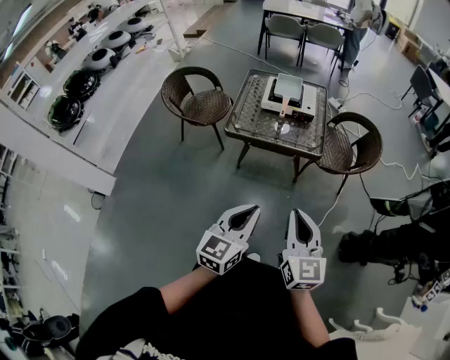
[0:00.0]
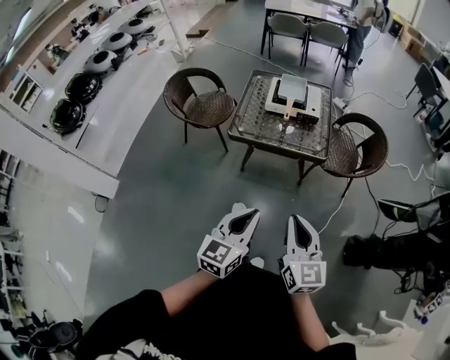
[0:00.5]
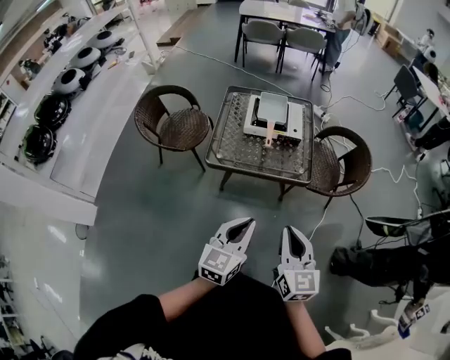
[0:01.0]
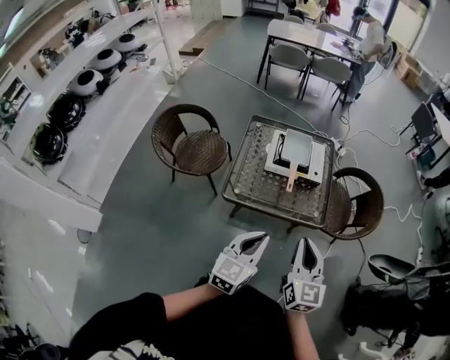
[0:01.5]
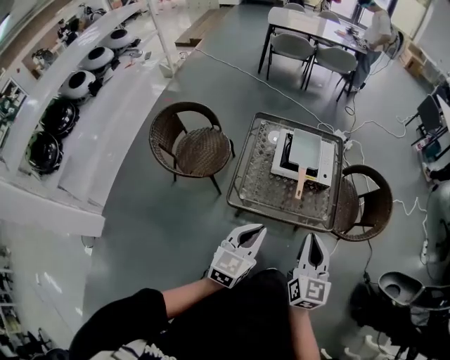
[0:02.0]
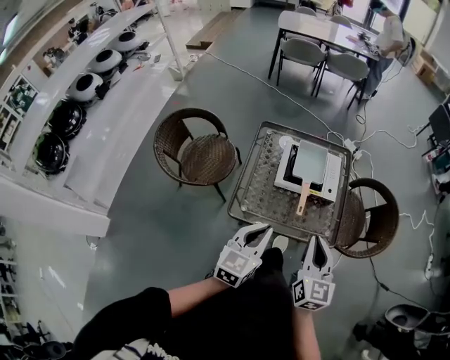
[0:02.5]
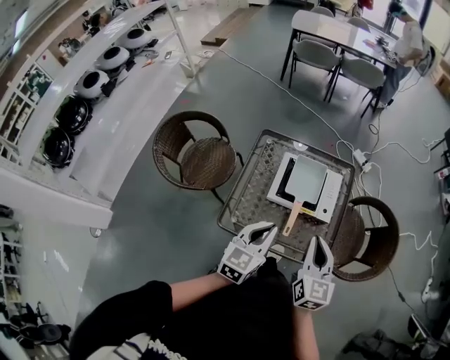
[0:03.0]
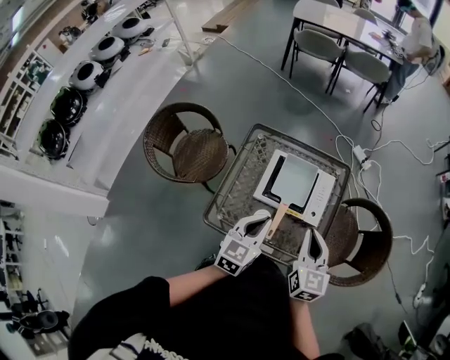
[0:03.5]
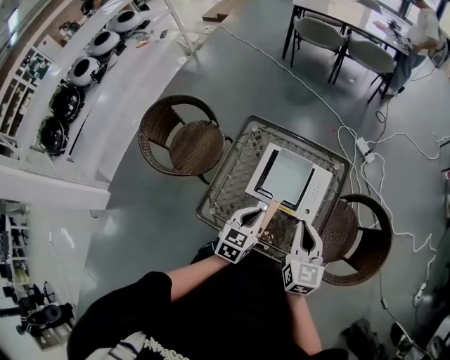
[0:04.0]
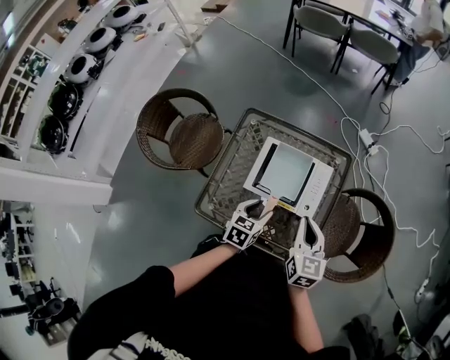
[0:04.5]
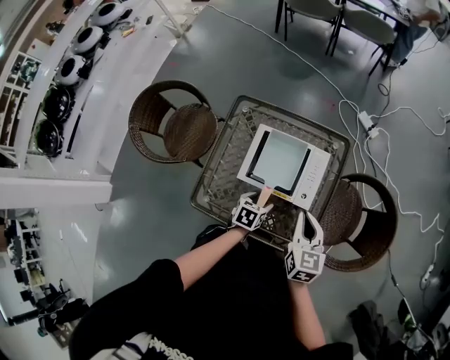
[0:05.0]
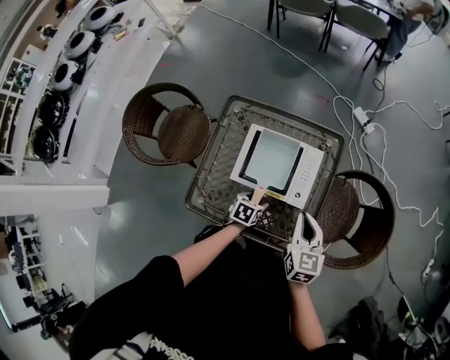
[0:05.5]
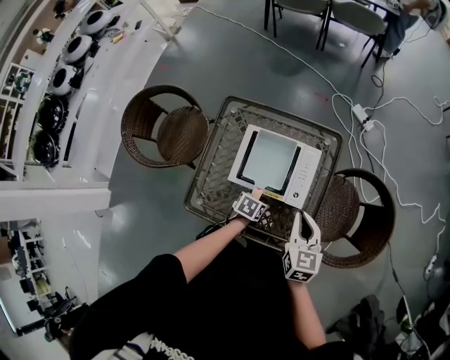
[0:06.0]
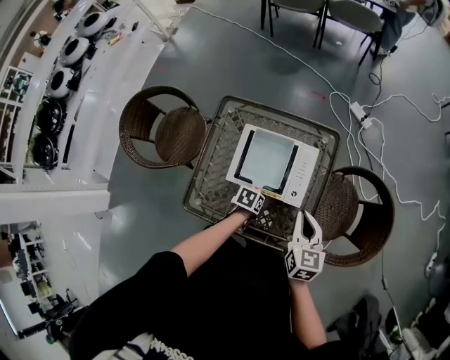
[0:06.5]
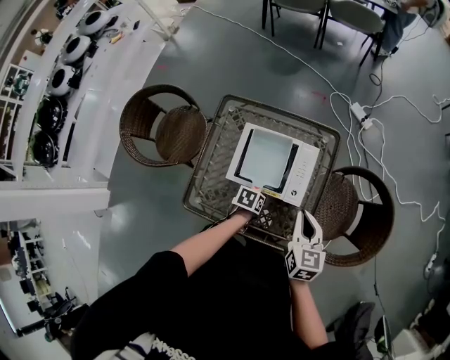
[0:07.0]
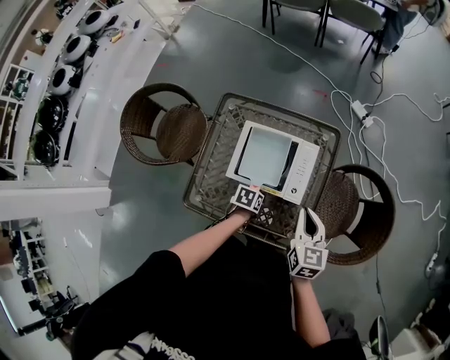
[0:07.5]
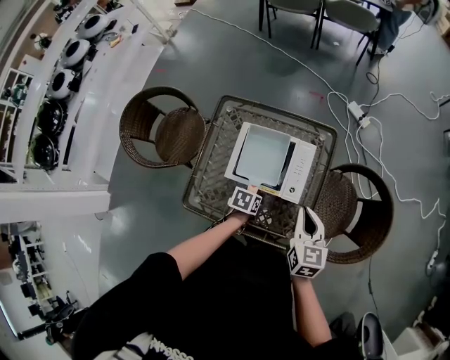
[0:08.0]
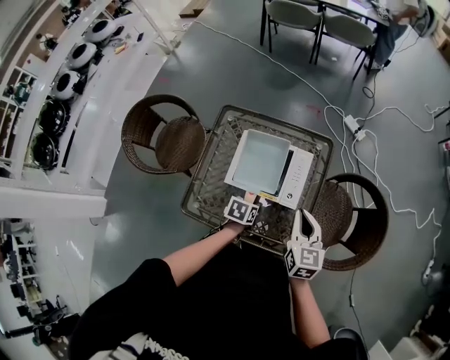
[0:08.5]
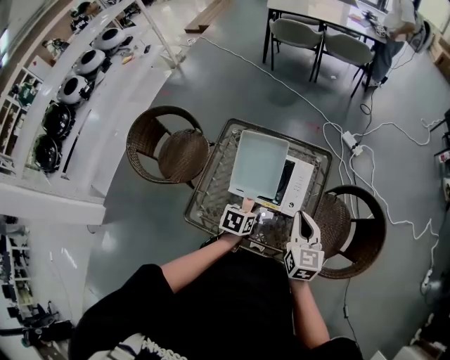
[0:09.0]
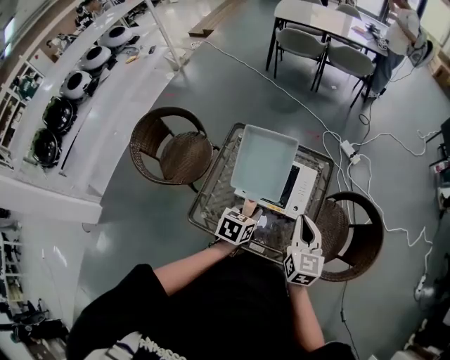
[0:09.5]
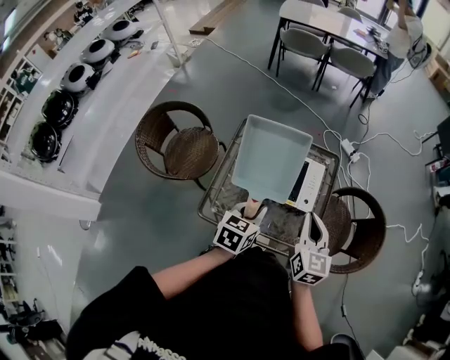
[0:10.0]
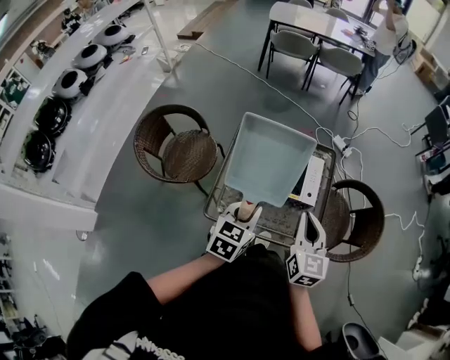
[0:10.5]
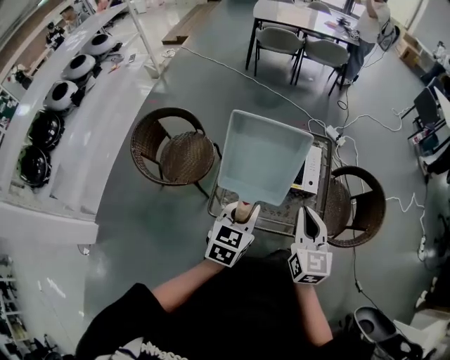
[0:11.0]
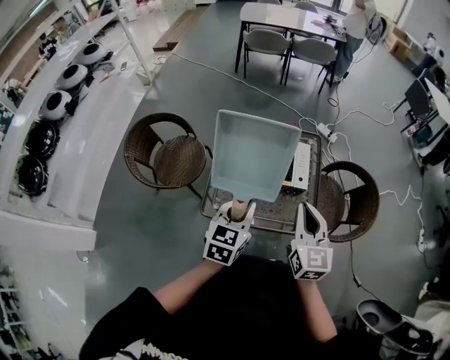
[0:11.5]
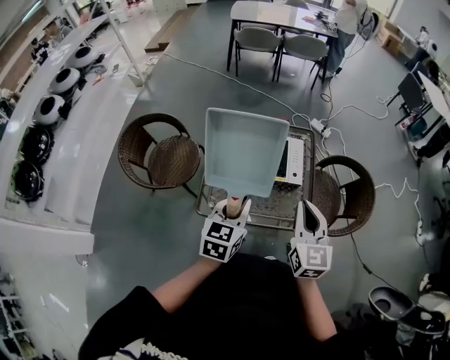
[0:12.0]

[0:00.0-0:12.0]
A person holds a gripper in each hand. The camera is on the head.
0:00.0 to 0:02.0: The left gripper heads forward and to the left, covering roughly 40 cm. The right gripper heads forward, covering roughly 35 cm.
0:02.0 to 0:04.0: The right gripper goes approximately 35 cm forward. Meanwhile the left gripper shifts approximately 35 cm forward and downward, and changes its angle by some 20 degrees.
0:04.0 to 0:06.0: The left gripper moves downward, about 20 cm, tilts its fingers some 30 degrees downward, and opens its fingers. Meanwhile the right gripper shifts approximately 10 cm downward and to the right.
0:06.0 to 0:08.0: The left gripper closes its fingers.
0:08.0 to 0:10.0: The right gripper heads upward, backward and to the left, covering about 15 cm. Meanwhile the left gripper shifts approximately 25 cm upward, and turns by about 40 degrees.
0:10.0 to 0:12.0: Both grippers travel together backward and upward, about 15 cm.

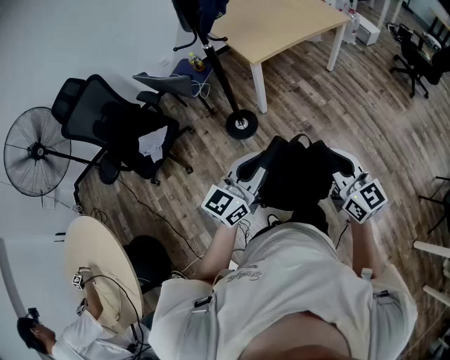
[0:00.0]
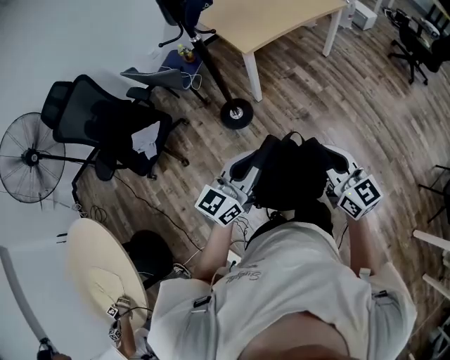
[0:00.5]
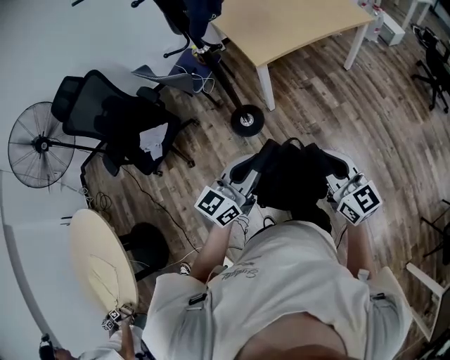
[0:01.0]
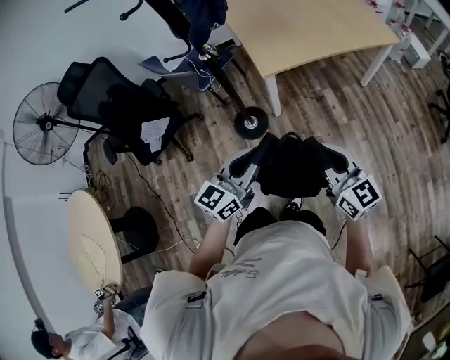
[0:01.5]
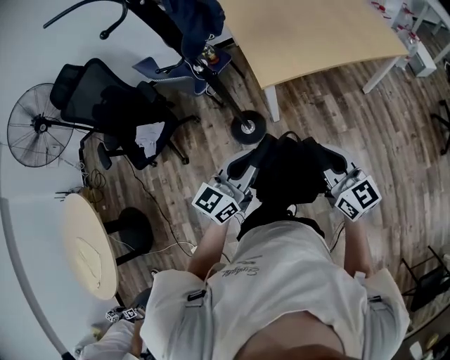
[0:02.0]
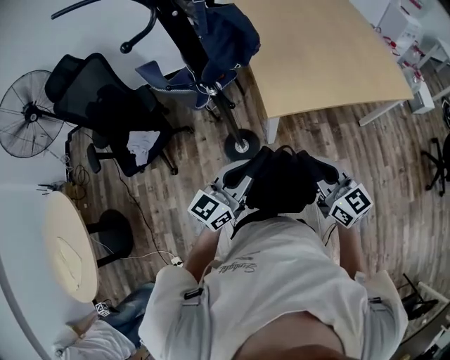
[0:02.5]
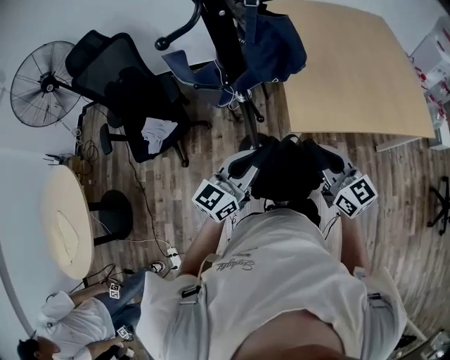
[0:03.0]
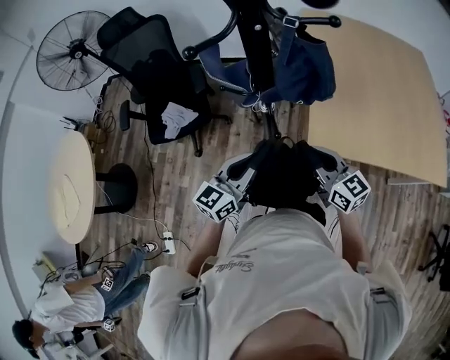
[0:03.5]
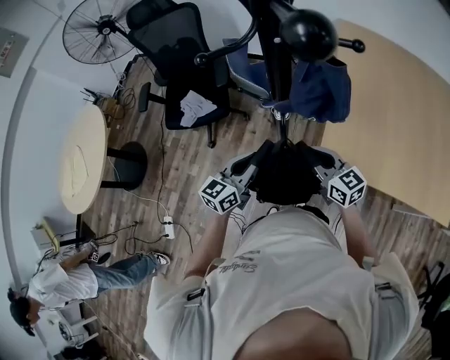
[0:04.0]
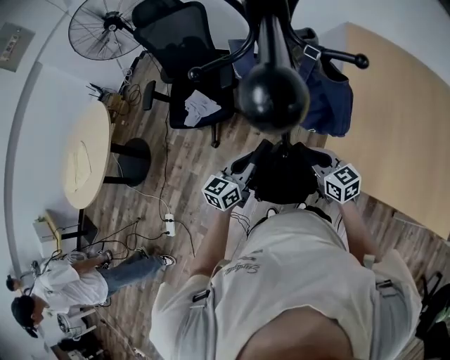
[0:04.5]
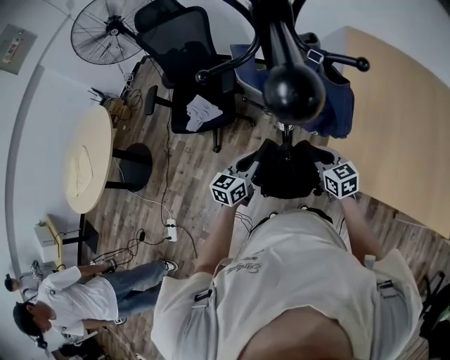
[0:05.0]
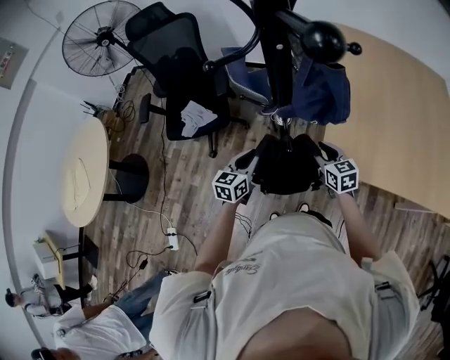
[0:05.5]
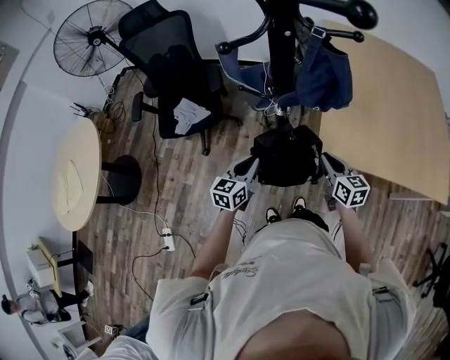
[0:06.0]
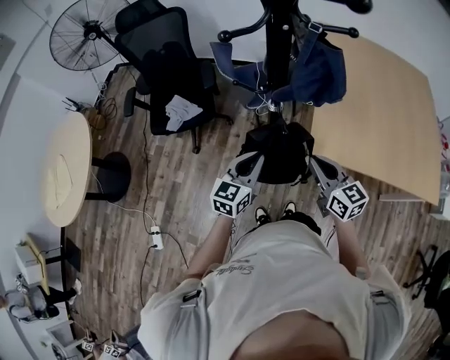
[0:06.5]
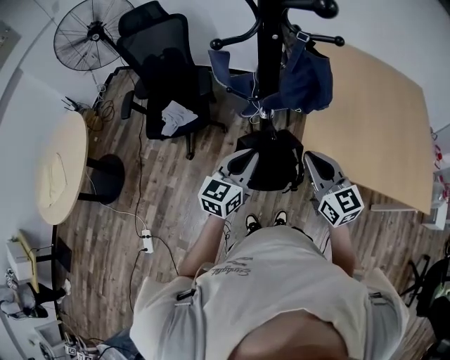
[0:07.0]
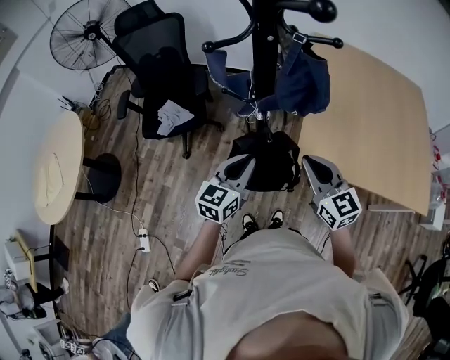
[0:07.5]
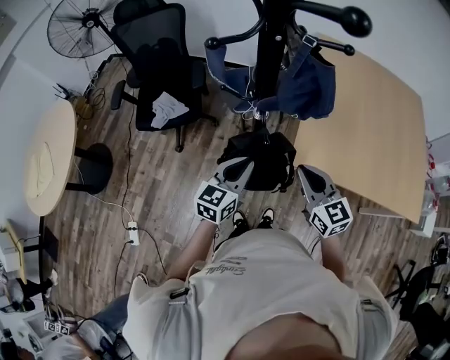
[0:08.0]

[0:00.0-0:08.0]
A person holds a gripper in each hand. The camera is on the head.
0:00.0 to 0:02.0: Both grippers travel together forward, roughly 35 cm. The right gripper changes its angle by approximately 20 degrees.
0:02.0 to 0:04.0: The right gripper shifts by approximately 35 cm, and rotates about 40 degrees, while the left gripper changes place by approximately 25 cm, and turns by roughly 40 degrees.
0:04.0 to 0:06.0: The two grippers go approximately 5 cm downward. The right gripper turns by approximately 30 degrees, and opens and closes again.
0:06.0 to 0:08.0: The right gripper shifts some 10 cm upward, and turns by some 20 degrees. The left gripper goes roughly 10 cm upward and to the right.

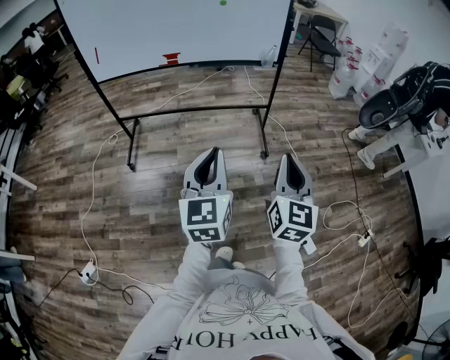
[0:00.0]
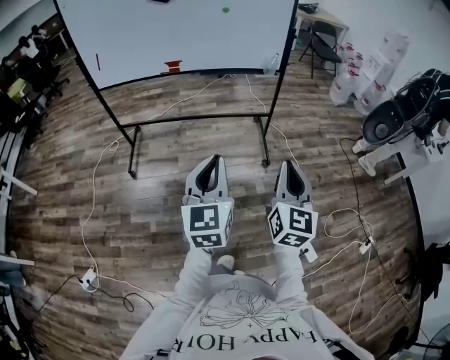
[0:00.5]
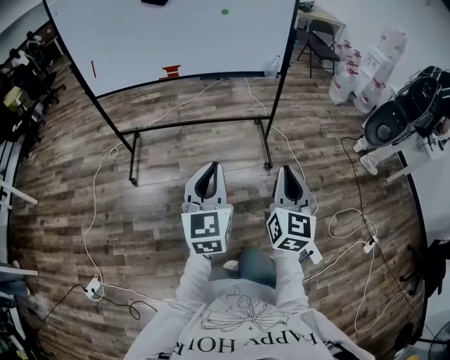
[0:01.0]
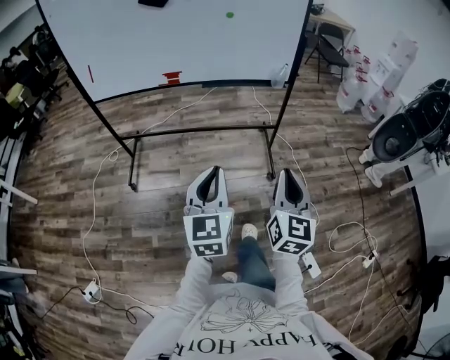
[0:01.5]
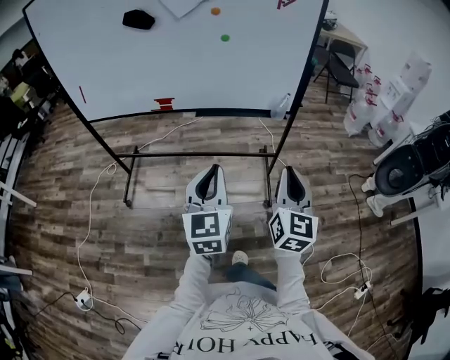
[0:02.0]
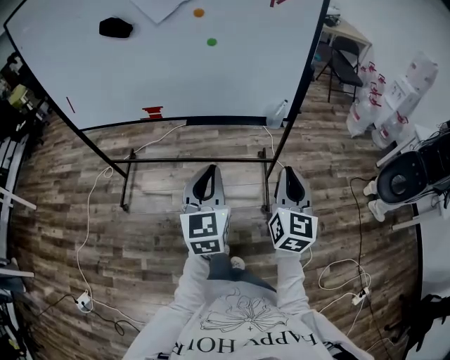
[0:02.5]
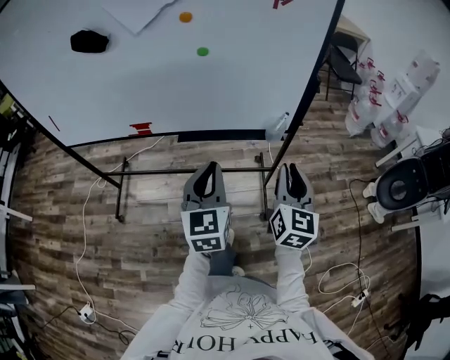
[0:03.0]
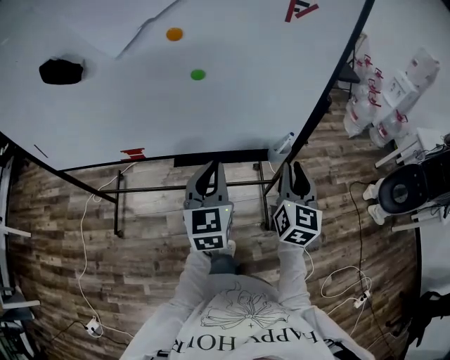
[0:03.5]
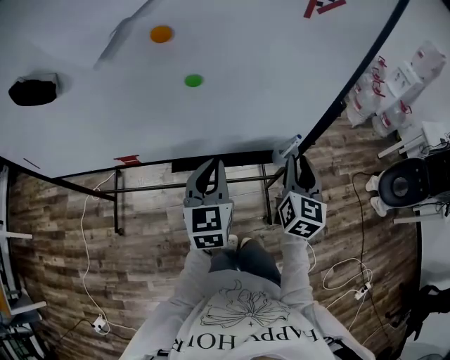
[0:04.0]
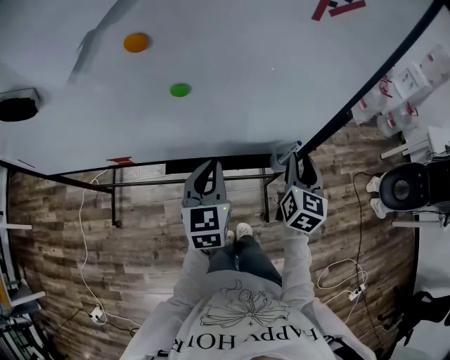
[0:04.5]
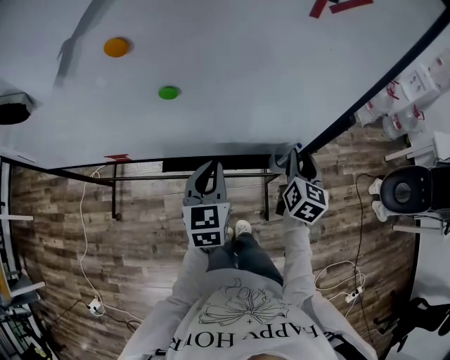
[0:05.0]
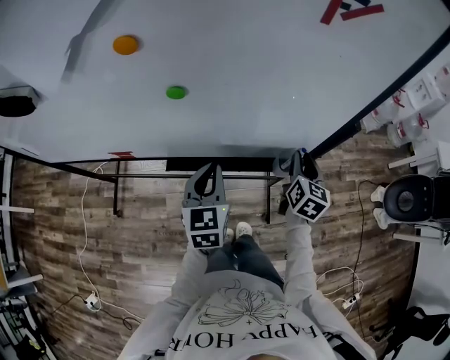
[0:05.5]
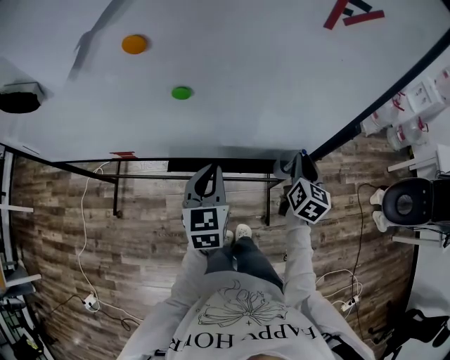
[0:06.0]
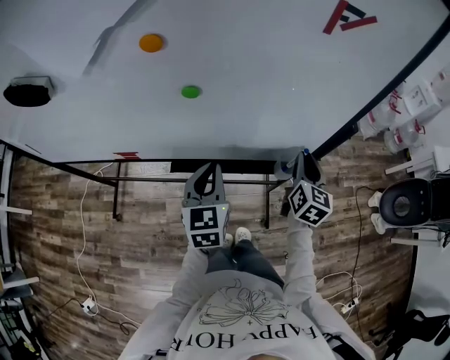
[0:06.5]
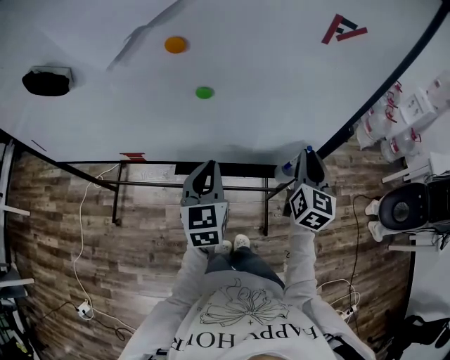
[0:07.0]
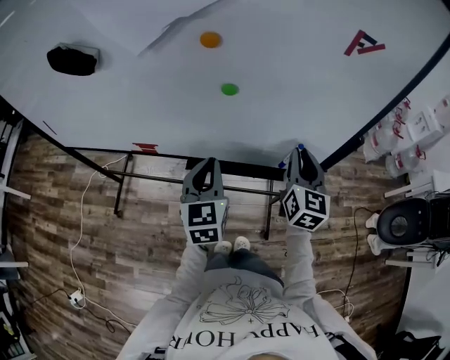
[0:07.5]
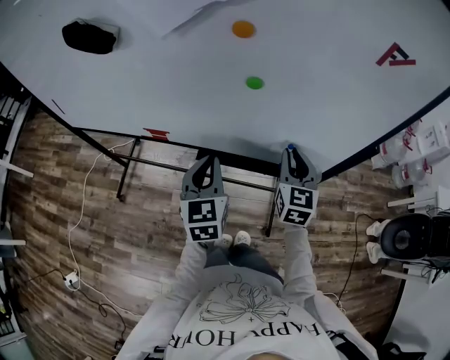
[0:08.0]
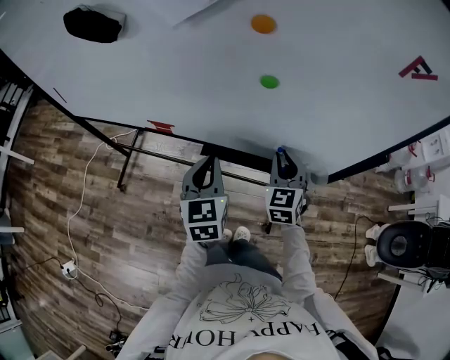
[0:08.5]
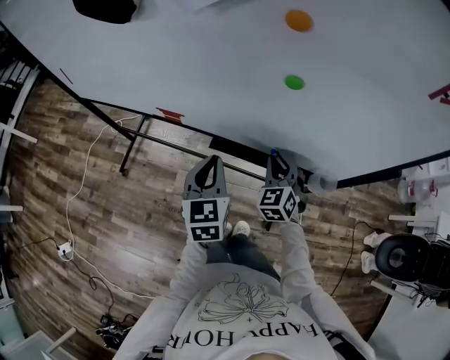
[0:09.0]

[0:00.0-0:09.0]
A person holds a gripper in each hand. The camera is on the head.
0:00.0 to 0:02.0: Both grippers travel together forward, some 35 cm.
0:02.0 to 0:04.5: The two grippers travel together, forward, roughly 50 cm. The right gripper opens up.
0:04.5 to 0:07.0: The right gripper moves upward, approximately 5 cm.
0:07.0 to 0:09.0: The right gripper goes about 25 cm to the left and downward, and twists approximately 50 degrees counterclockwise, seen from behind. The left gripper goes some 10 cm to the left and downward.
